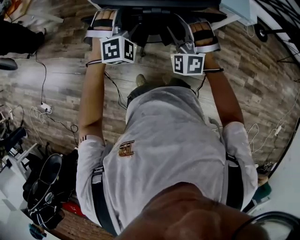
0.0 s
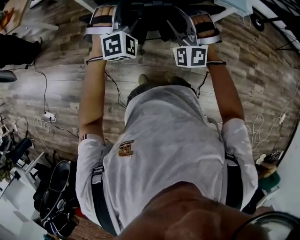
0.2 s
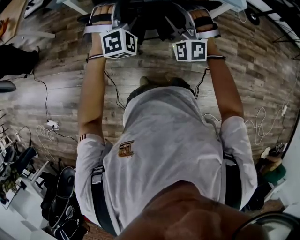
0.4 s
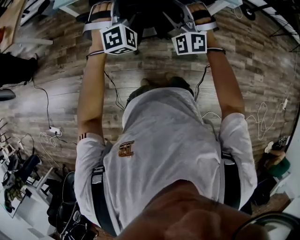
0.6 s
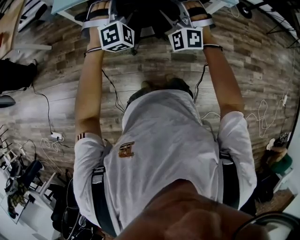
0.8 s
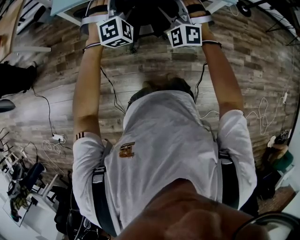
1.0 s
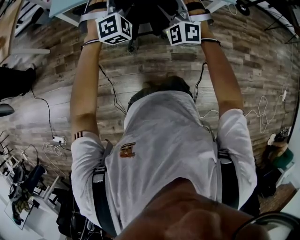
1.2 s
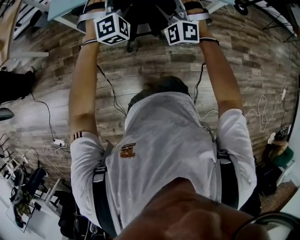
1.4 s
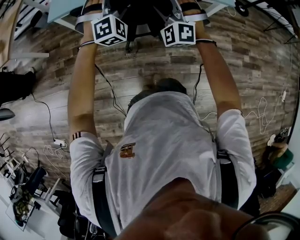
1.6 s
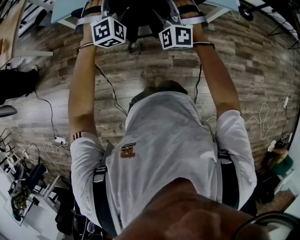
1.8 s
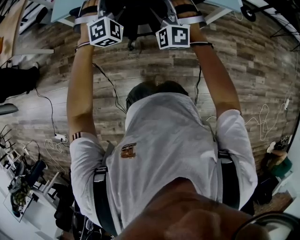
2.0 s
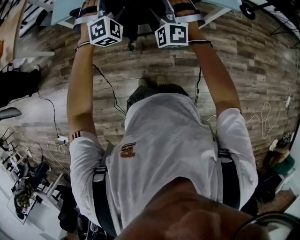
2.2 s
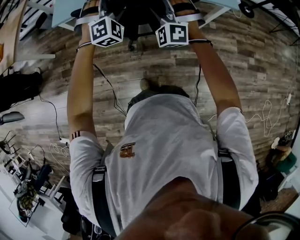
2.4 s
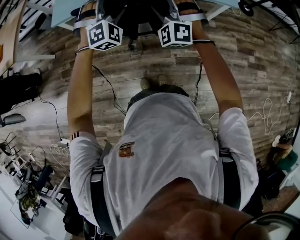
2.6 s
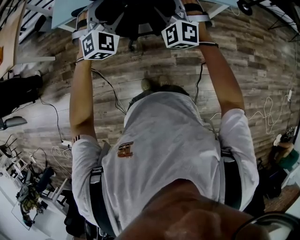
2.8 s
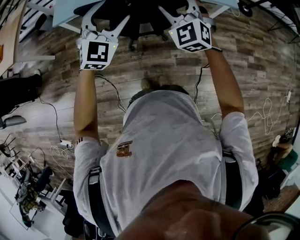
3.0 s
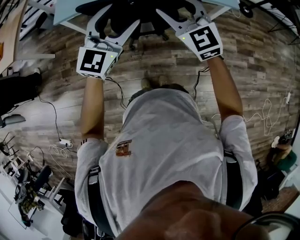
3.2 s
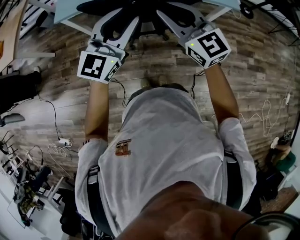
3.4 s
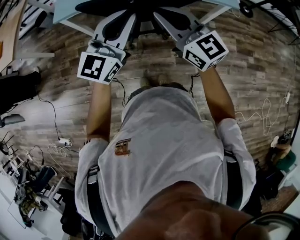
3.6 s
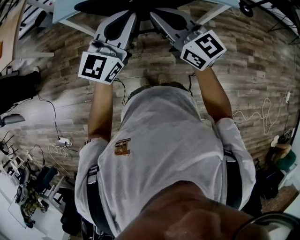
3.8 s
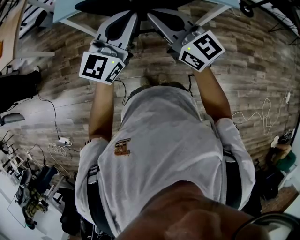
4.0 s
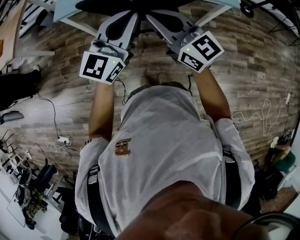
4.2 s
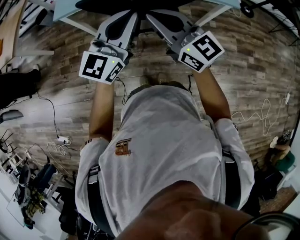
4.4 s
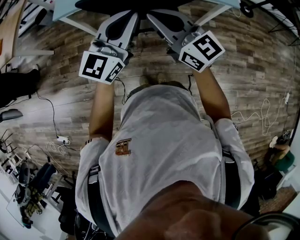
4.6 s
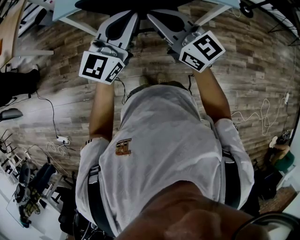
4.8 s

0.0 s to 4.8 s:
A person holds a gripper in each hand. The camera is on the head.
0.0 to 1.6 s: The grippers both shift forward by roughly 20 cm.
1.6 to 3.2 s: The right gripper goes roughly 10 cm upward, and rolls clockwise, seen from behind, by about 50 degrees. Meanwhile the left gripper shifts about 15 cm upward and backward, and rolls counterclockwise, seen from behind, by roughly 50 degrees.
3.2 to 4.8 s: The right gripper moves to the left and backward, some 5 cm, changes its angle by some 30 degrees, and closes, while the left gripper closes.

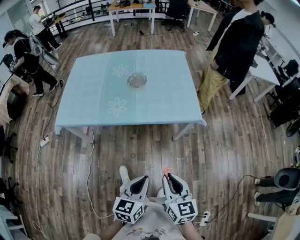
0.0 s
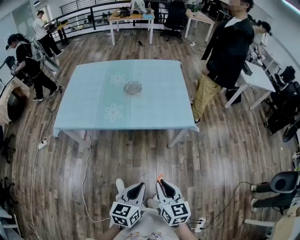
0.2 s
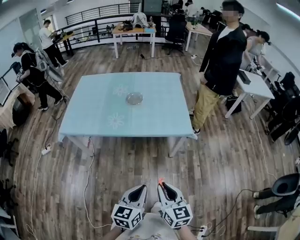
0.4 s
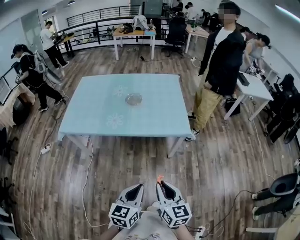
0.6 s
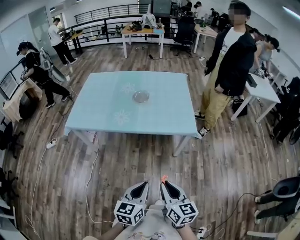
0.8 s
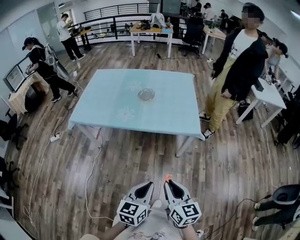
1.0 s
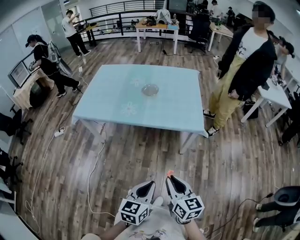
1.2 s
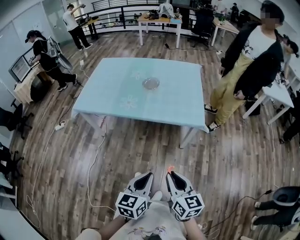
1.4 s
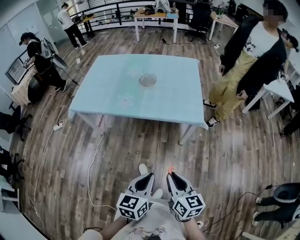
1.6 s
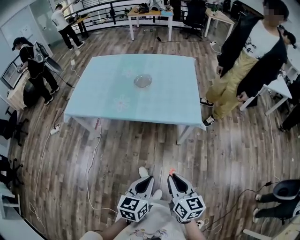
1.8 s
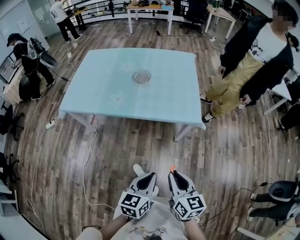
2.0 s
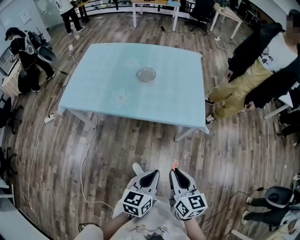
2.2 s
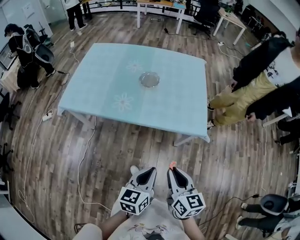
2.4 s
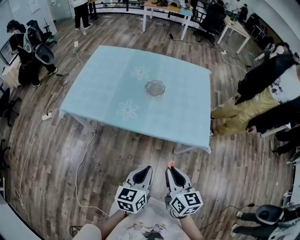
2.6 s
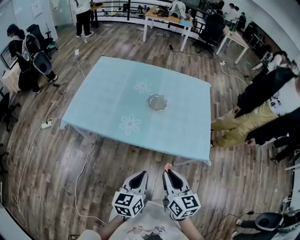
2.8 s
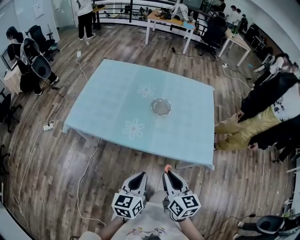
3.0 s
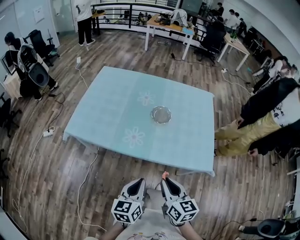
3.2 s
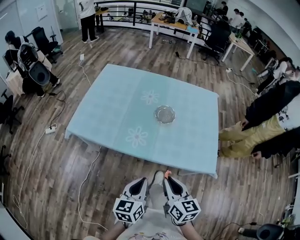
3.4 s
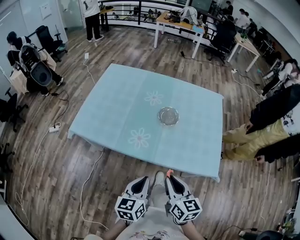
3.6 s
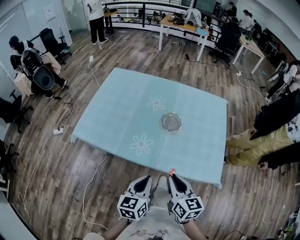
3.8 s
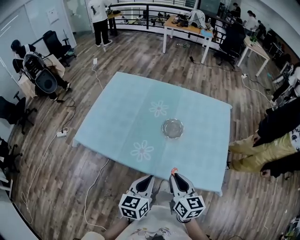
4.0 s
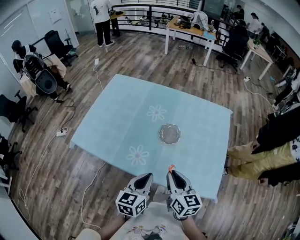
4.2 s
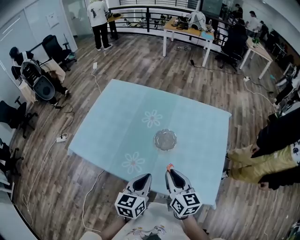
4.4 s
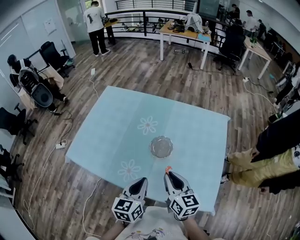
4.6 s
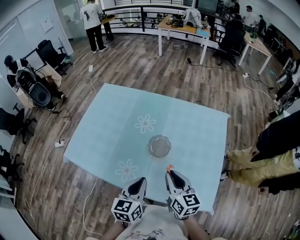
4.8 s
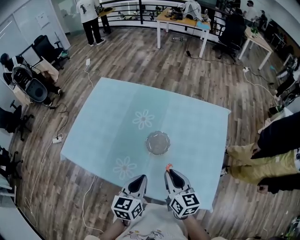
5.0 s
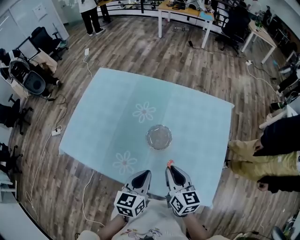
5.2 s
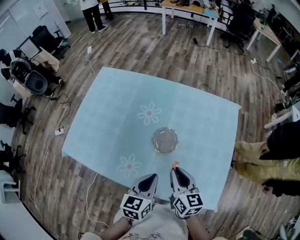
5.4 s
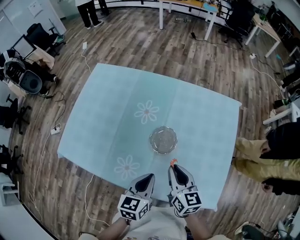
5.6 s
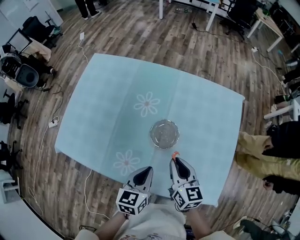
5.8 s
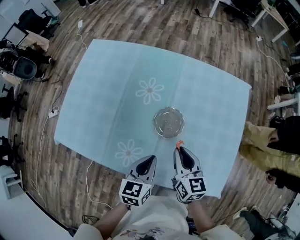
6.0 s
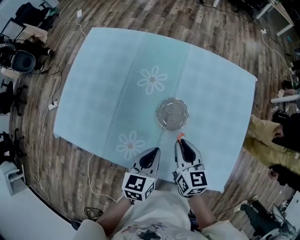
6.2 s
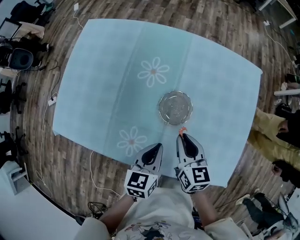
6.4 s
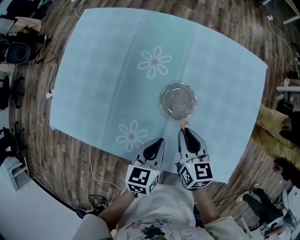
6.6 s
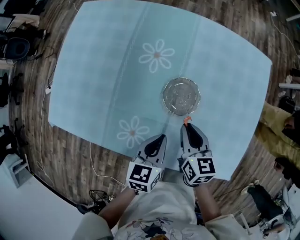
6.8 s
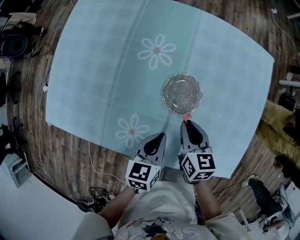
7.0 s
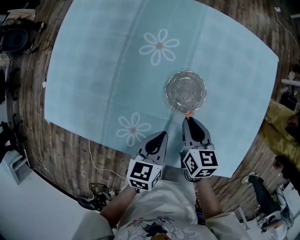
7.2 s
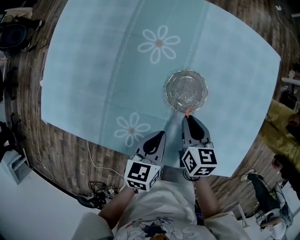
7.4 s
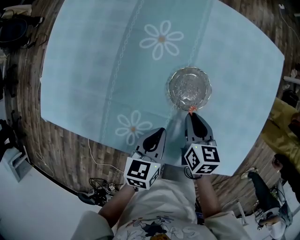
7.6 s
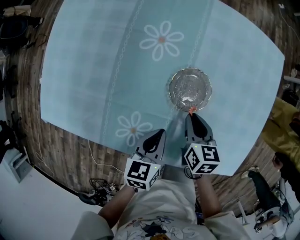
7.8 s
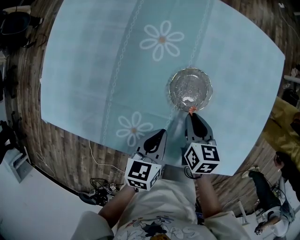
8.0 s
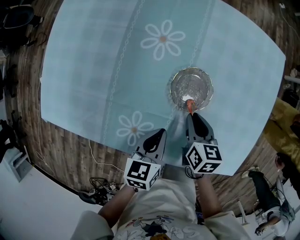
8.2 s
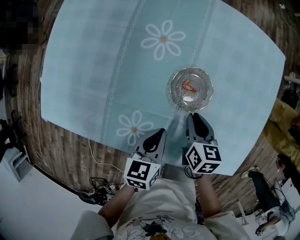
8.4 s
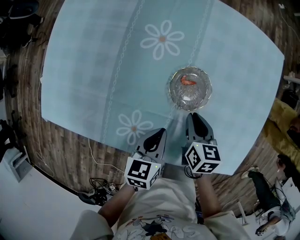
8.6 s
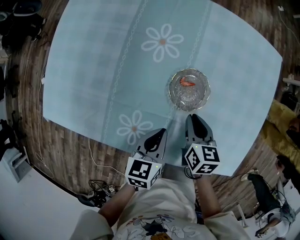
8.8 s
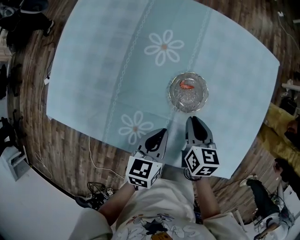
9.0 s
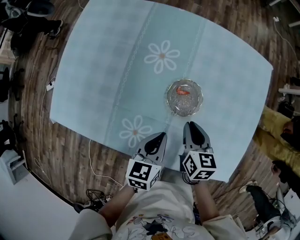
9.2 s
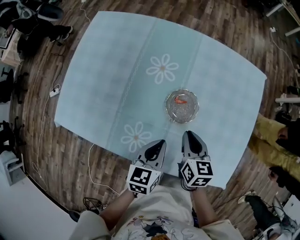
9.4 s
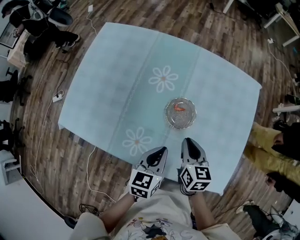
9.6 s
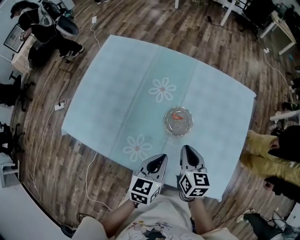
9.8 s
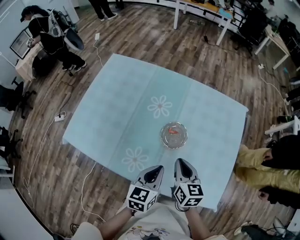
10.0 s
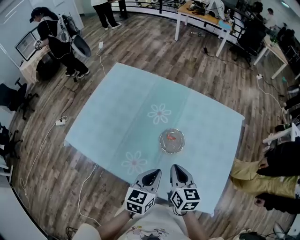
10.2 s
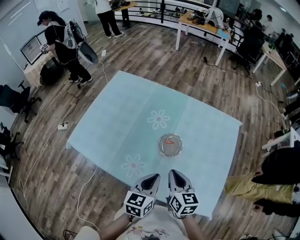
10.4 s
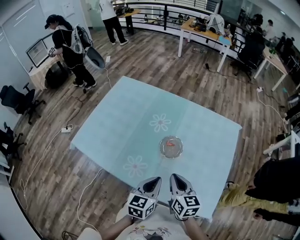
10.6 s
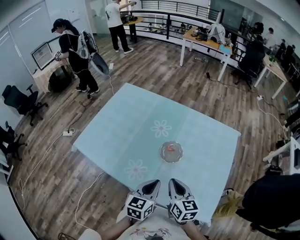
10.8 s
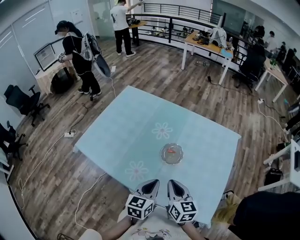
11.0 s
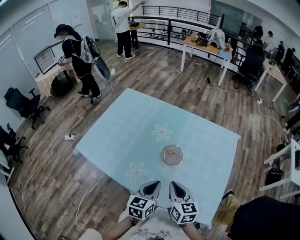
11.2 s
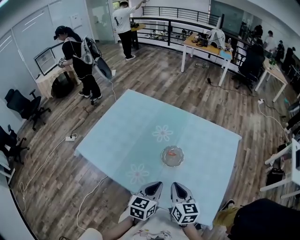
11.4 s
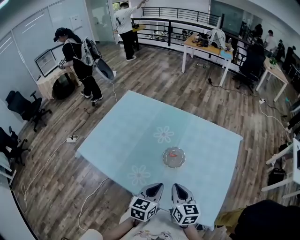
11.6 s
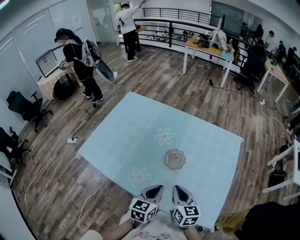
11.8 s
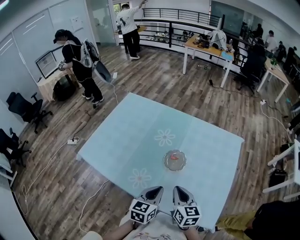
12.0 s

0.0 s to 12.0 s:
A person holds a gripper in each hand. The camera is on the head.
0.0 to 1.6 s: The left gripper heads backward and to the right, covering roughly 15 cm. The right gripper moves to the right and backward, some 15 cm.
1.6 to 3.0 s: Both grippers move forward and to the left, roughly 30 cm.
3.0 to 4.4 s: The two grippers go approximately 25 cm forward.
4.4 to 6.0 s: Both grippers travel together forward and downward, some 20 cm.
6.0 to 7.6 s: The two grippers go about 15 cm downward. The right gripper rotates roughly 20 degrees.
7.6 to 9.0 s: There are only small adjustments of the grippers.
9.0 to 10.4 s: Both grippers move upward and backward, some 20 cm. The right gripper swivels approximately 20 degrees.
10.4 to 12.0 s: The grippers stay close to where they were, moving slightly.

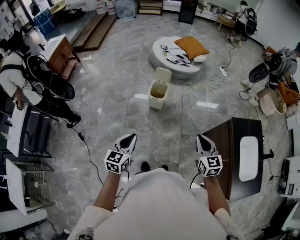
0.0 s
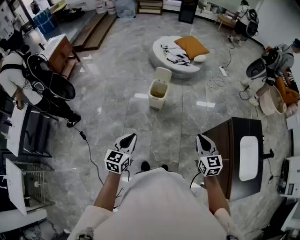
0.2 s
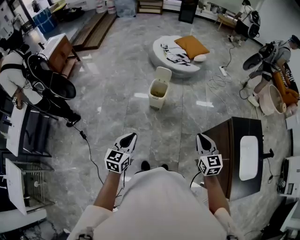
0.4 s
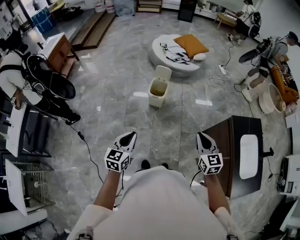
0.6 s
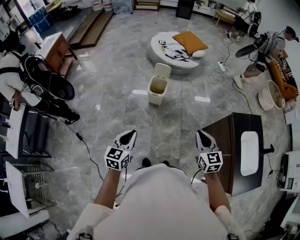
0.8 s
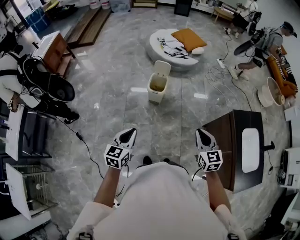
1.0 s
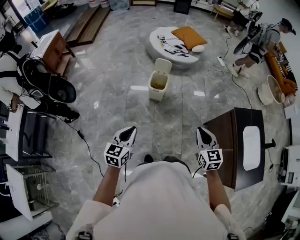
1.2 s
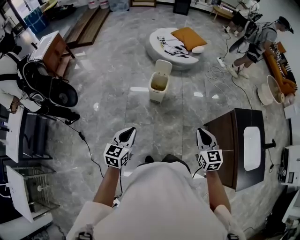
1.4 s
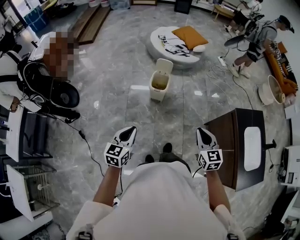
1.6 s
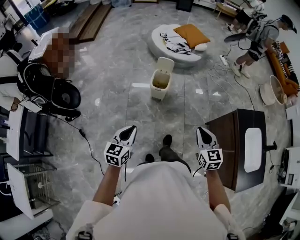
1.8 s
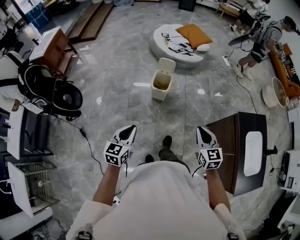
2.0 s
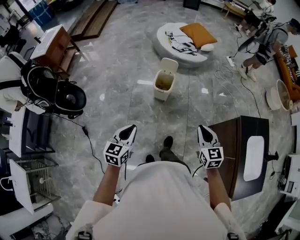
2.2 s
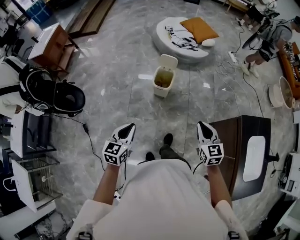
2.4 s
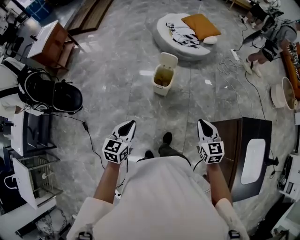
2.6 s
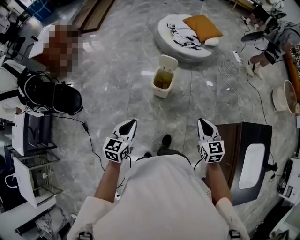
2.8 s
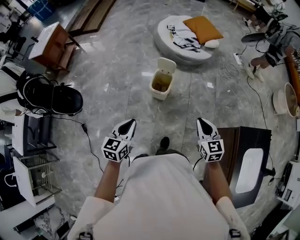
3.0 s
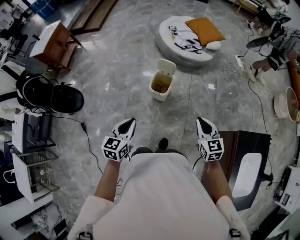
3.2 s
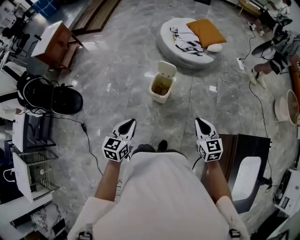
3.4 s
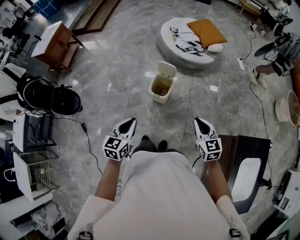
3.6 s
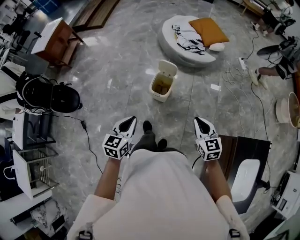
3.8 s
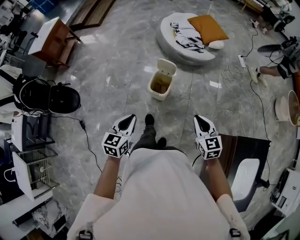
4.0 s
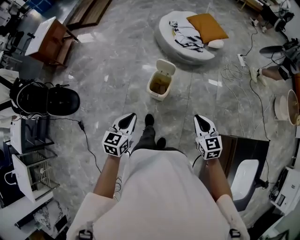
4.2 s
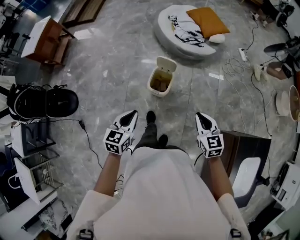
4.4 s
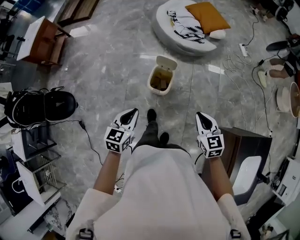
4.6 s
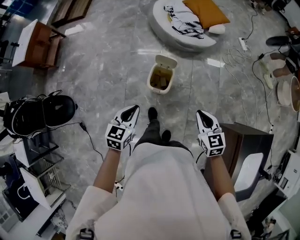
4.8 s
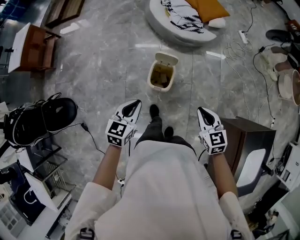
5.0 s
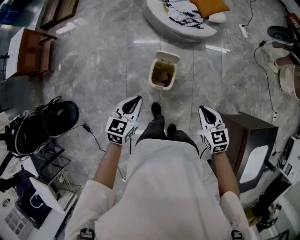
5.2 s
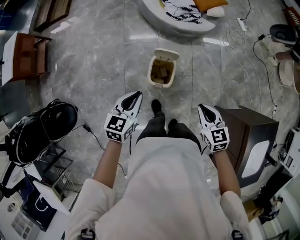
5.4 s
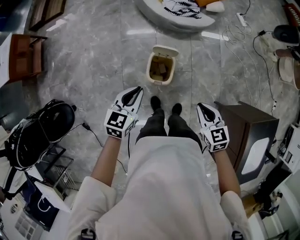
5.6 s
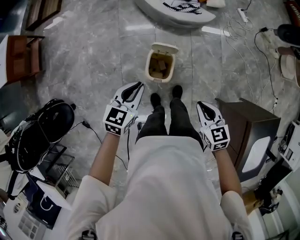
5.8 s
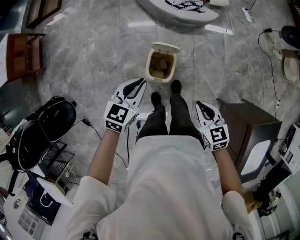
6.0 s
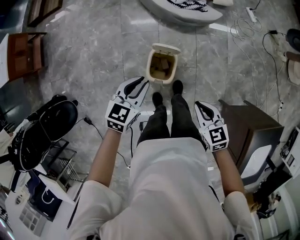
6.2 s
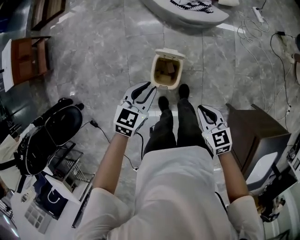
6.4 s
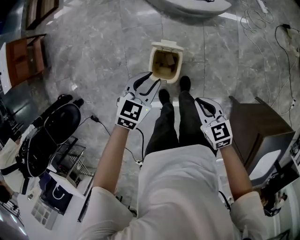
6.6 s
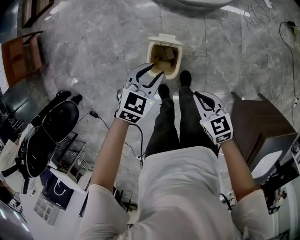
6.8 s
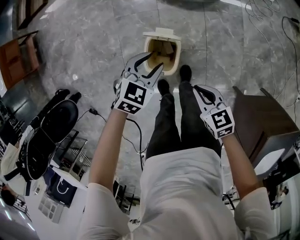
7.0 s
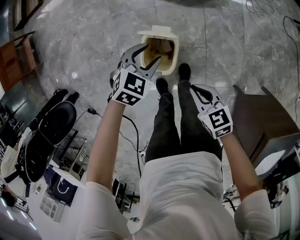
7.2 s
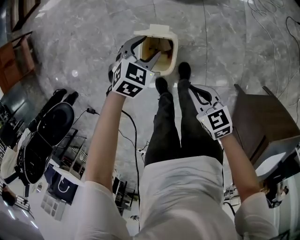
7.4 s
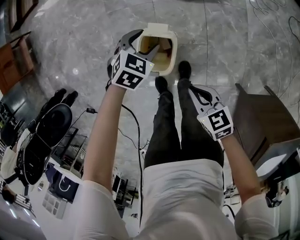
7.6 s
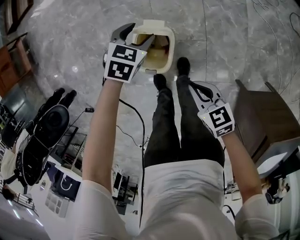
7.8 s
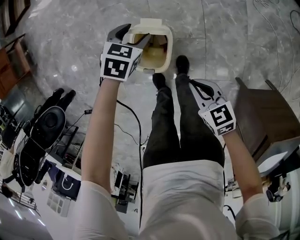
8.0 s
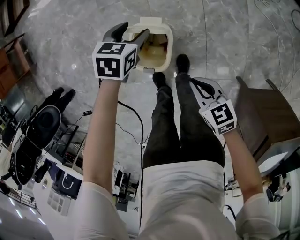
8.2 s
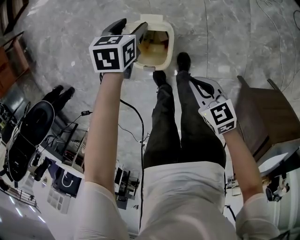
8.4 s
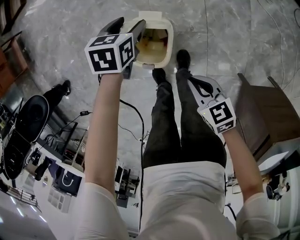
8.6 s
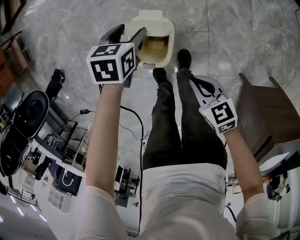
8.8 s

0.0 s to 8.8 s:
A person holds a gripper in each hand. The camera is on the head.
0.0 to 1.4 s: Both grippers move to the left, about 5 cm.
1.4 to 3.0 s: The two grippers go about 20 cm forward.
3.0 to 4.4 s: The two grippers go some 10 cm forward.
4.4 to 5.8 s: The left gripper heads forward, covering some 20 cm, while the right gripper heads forward, to the left and downward, covering about 15 cm.
5.8 to 7.4 s: The left gripper travels downward, forward and to the right by approximately 30 cm, changes its angle by some 30 degrees, and opens, while the right gripper is displaced downward by about 20 cm, and rotates roughly 20 degrees.
7.4 to 8.8 s: Both grippers travel together downward, some 5 cm. The left gripper turns by roughly 40 degrees.
